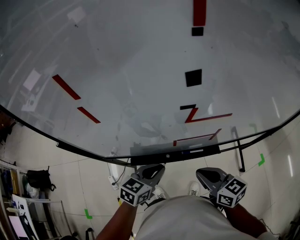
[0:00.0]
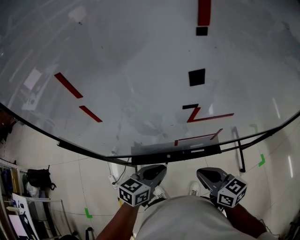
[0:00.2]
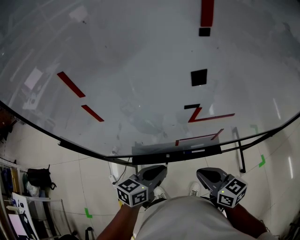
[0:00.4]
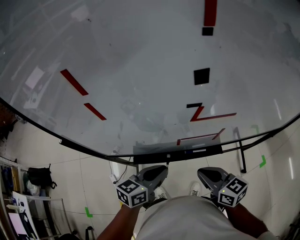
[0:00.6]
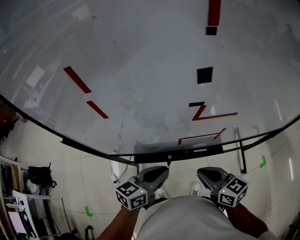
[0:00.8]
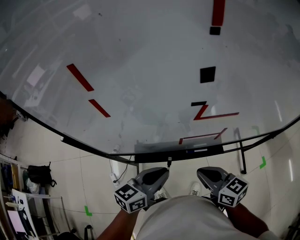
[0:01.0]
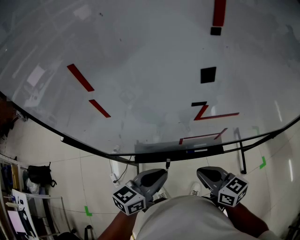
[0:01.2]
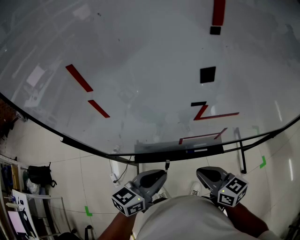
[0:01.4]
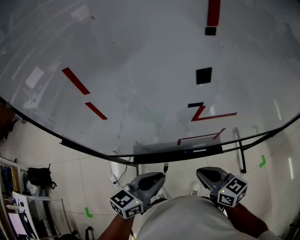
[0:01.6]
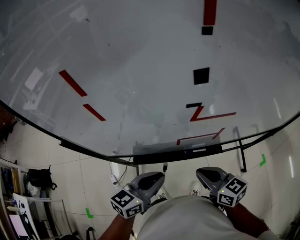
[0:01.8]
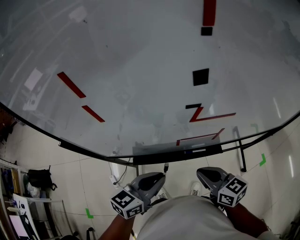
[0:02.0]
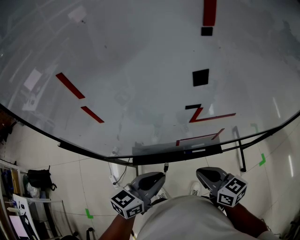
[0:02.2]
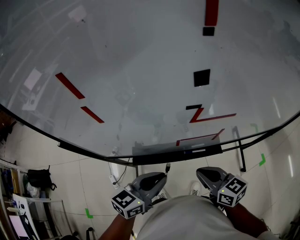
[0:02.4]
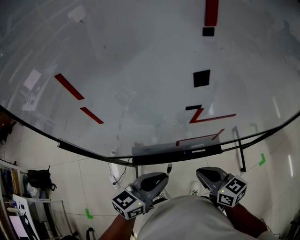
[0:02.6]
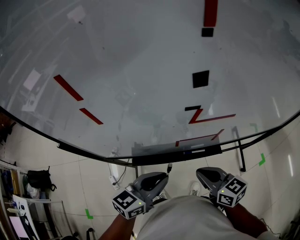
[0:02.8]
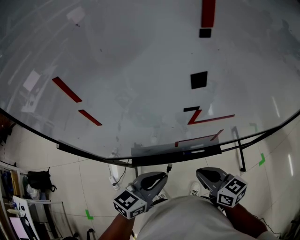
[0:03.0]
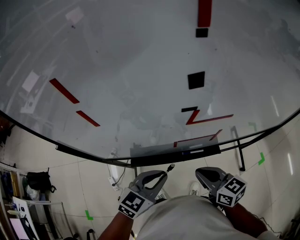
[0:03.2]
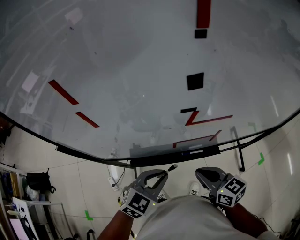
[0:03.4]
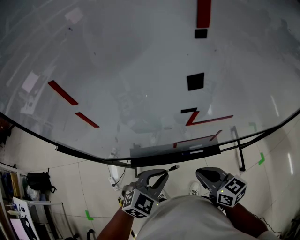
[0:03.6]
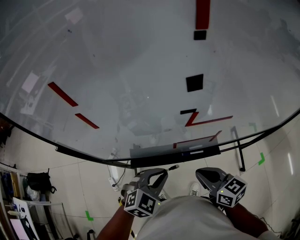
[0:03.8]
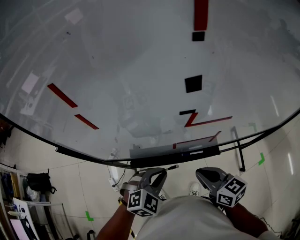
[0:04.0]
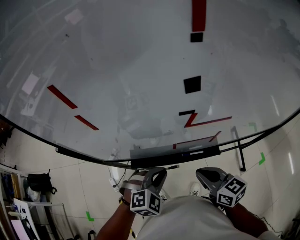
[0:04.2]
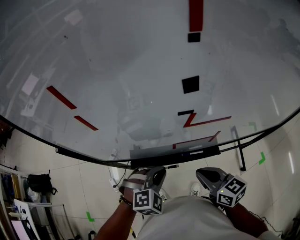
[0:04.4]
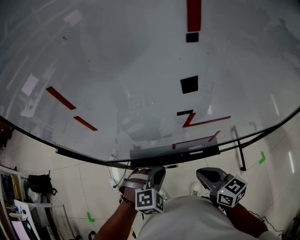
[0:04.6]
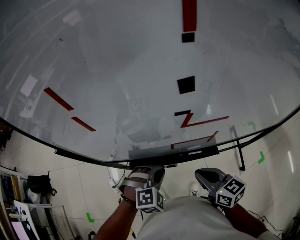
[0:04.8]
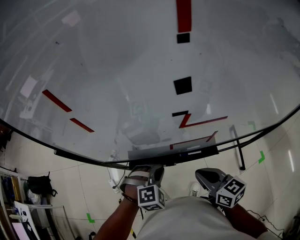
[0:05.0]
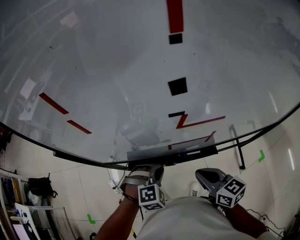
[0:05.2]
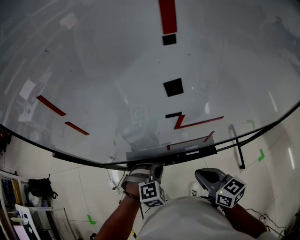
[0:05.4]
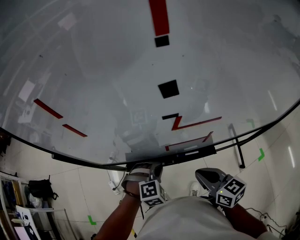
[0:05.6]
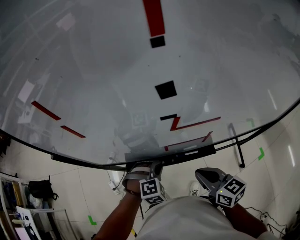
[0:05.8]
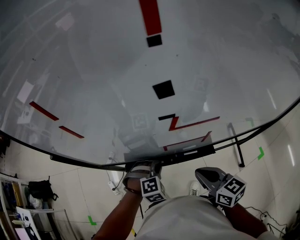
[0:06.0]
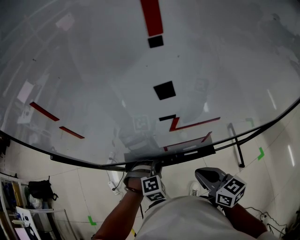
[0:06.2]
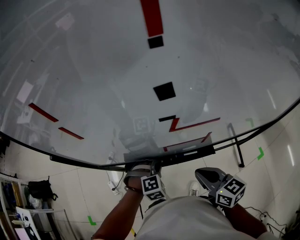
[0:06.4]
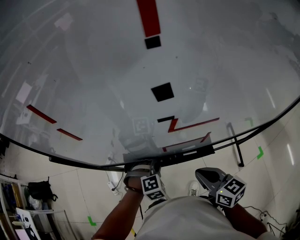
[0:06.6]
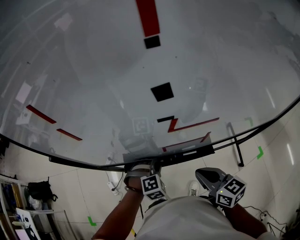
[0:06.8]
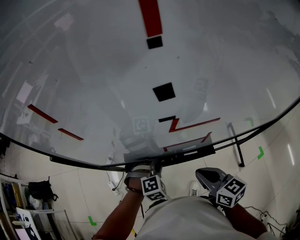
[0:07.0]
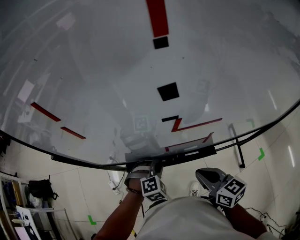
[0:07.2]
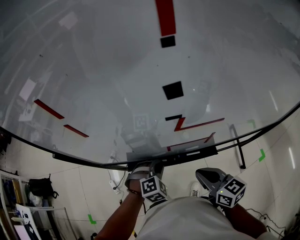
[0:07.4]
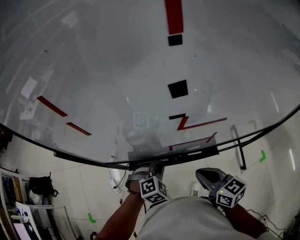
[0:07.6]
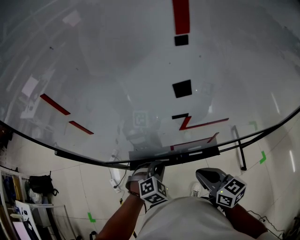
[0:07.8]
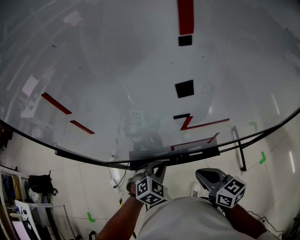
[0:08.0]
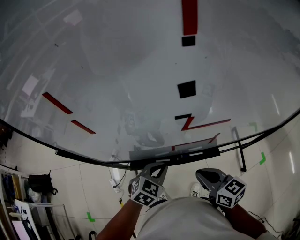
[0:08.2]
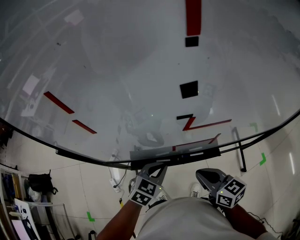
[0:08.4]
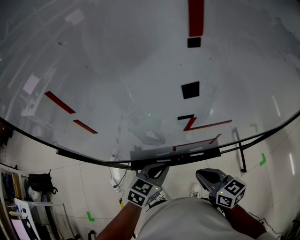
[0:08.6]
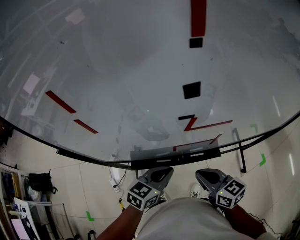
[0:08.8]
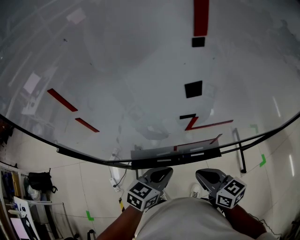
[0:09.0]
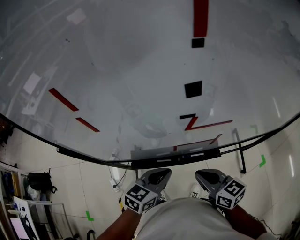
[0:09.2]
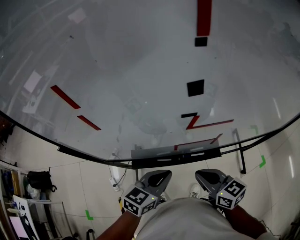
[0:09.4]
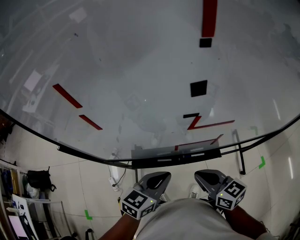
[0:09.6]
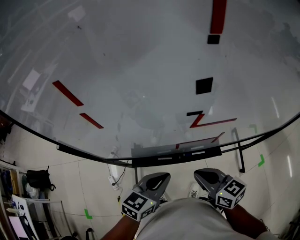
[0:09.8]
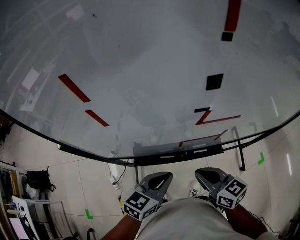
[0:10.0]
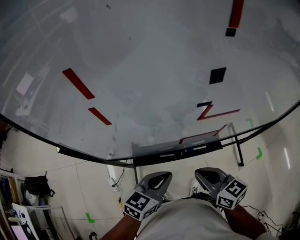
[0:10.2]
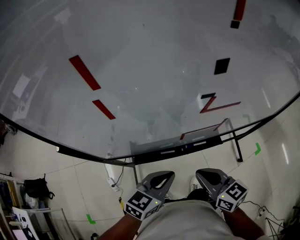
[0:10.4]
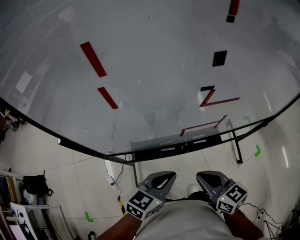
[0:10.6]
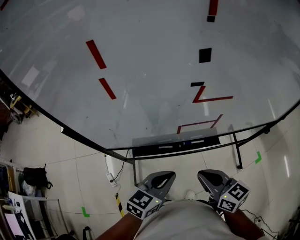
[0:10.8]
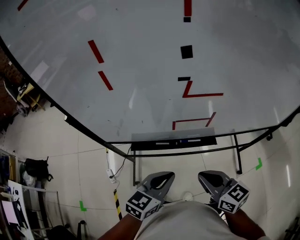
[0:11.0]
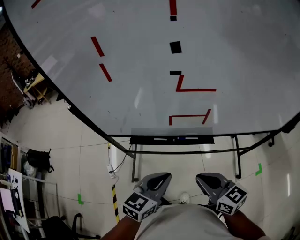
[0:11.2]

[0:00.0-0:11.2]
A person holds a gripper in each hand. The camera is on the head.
0:00.0 to 0:01.6: The left gripper shifts roughly 5 cm upward.
0:01.6 to 0:03.2: The left gripper changes its angle by about 20 degrees.
0:03.2 to 0:04.8: The left gripper shifts about 5 cm downward, and rolls clockwise, seen from behind, by some 50 degrees.
0:04.8 to 0:06.4: The left gripper goes approximately 10 cm downward.
0:06.4 to 0:08.0: The left gripper moves upward, roughly 5 cm, and turns by some 30 degrees.
0:08.0 to 0:09.6: The left gripper travels upward by about 10 cm, and turns by about 50 degrees.
0:09.6 to 0:11.2: The two grippers go approximately 10 cm backward.

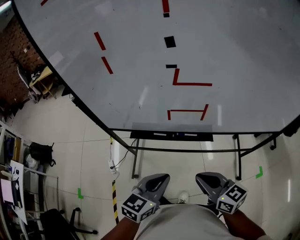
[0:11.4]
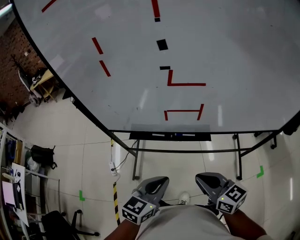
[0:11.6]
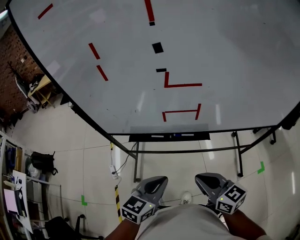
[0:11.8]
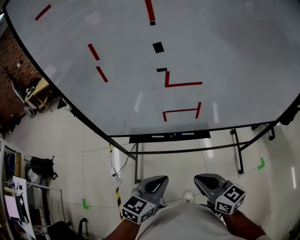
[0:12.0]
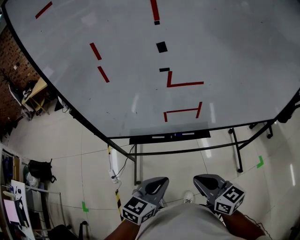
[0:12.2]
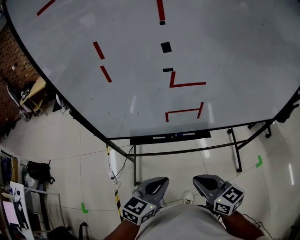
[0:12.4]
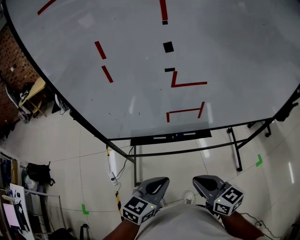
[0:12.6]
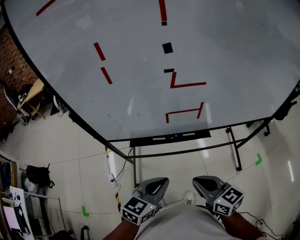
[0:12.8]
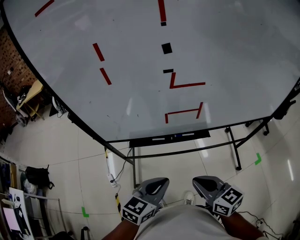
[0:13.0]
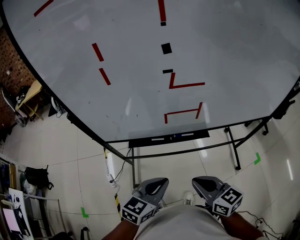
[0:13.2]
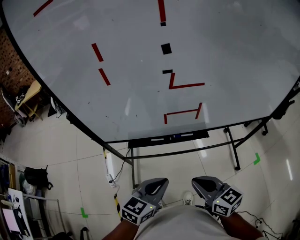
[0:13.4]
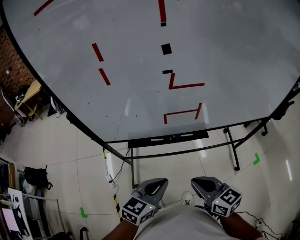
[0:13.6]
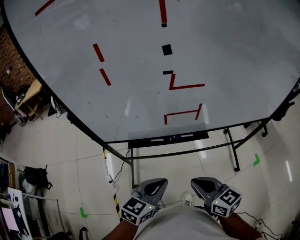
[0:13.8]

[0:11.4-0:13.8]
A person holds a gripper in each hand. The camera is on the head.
0:11.4 to 0:12.6: The right gripper ends up some 5 cm from where it was.
0:12.6 to 0:13.8: Both grippers stay put.

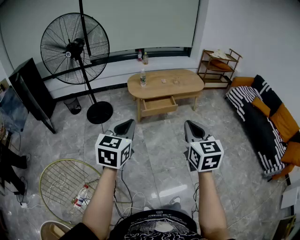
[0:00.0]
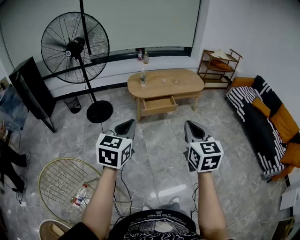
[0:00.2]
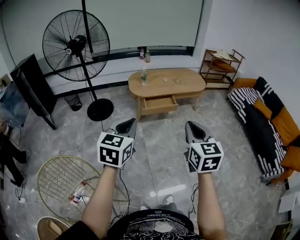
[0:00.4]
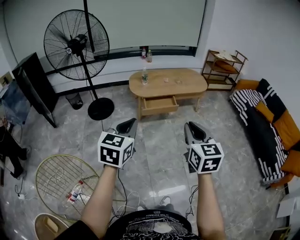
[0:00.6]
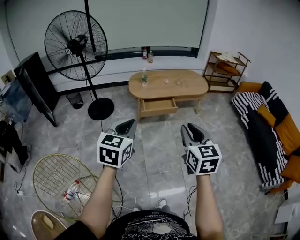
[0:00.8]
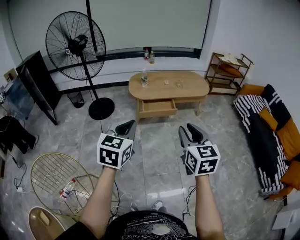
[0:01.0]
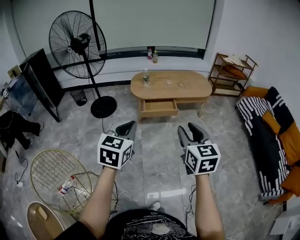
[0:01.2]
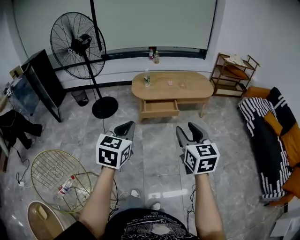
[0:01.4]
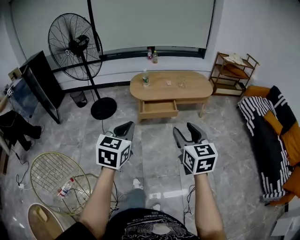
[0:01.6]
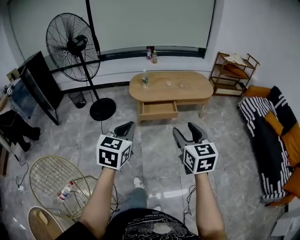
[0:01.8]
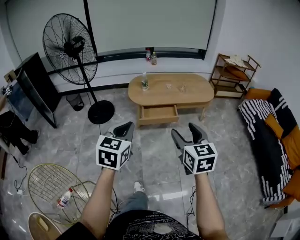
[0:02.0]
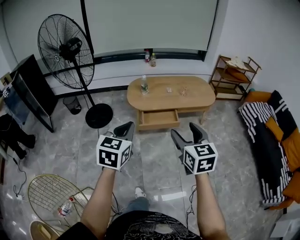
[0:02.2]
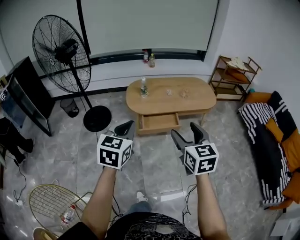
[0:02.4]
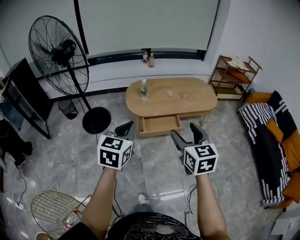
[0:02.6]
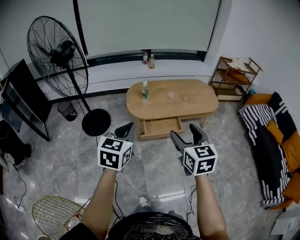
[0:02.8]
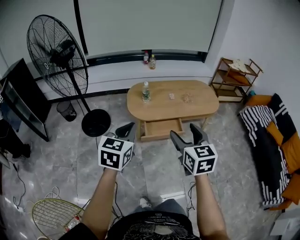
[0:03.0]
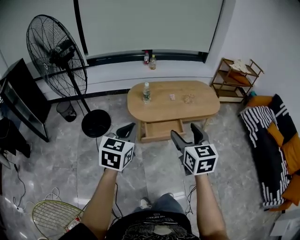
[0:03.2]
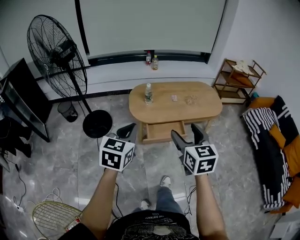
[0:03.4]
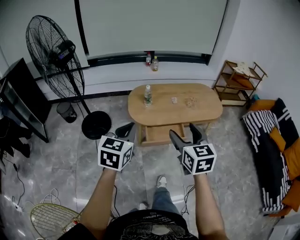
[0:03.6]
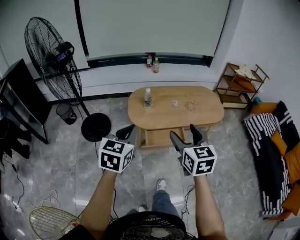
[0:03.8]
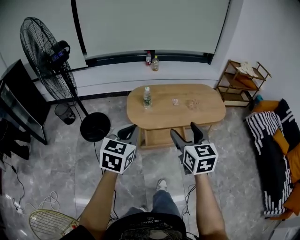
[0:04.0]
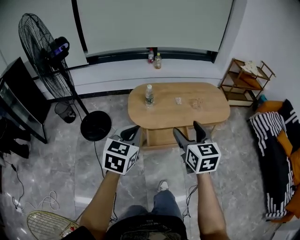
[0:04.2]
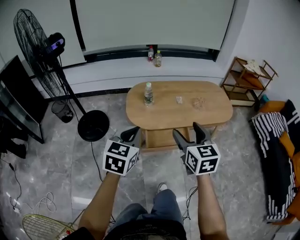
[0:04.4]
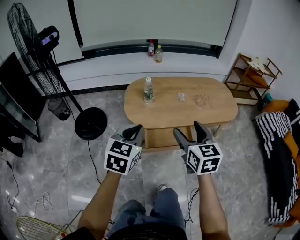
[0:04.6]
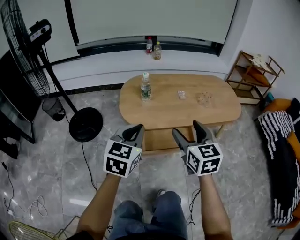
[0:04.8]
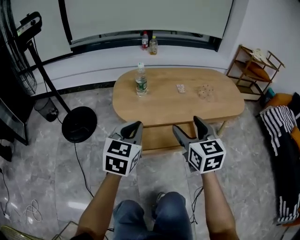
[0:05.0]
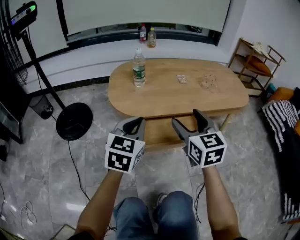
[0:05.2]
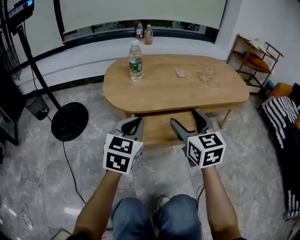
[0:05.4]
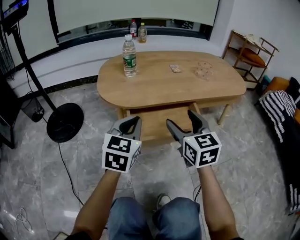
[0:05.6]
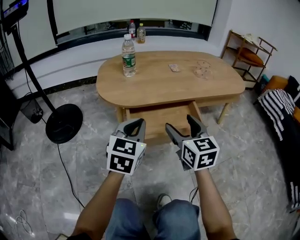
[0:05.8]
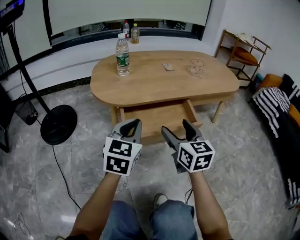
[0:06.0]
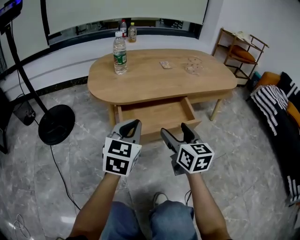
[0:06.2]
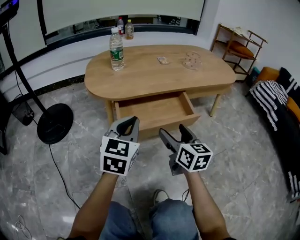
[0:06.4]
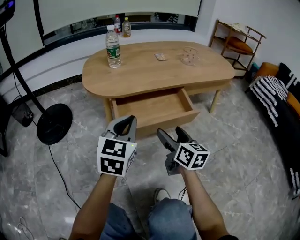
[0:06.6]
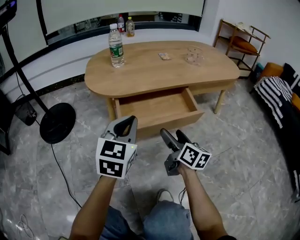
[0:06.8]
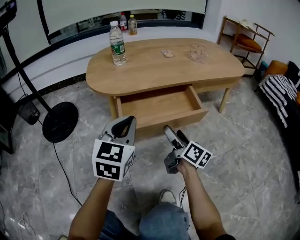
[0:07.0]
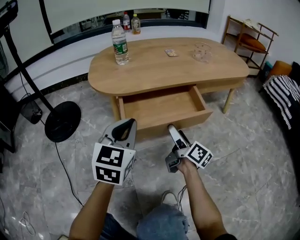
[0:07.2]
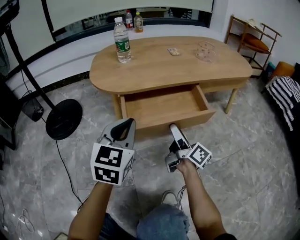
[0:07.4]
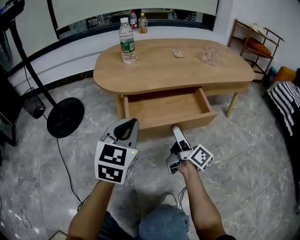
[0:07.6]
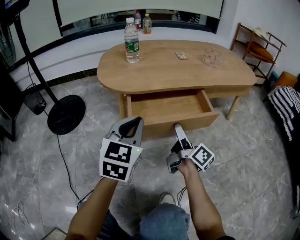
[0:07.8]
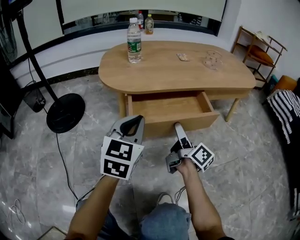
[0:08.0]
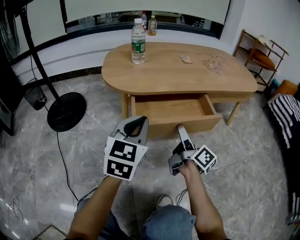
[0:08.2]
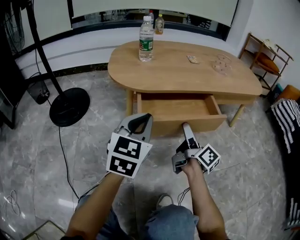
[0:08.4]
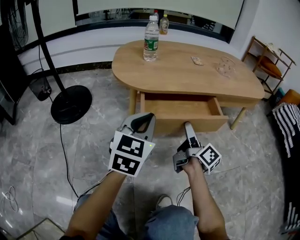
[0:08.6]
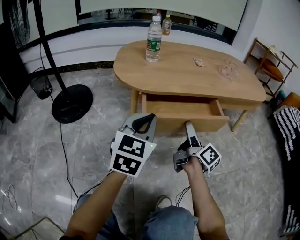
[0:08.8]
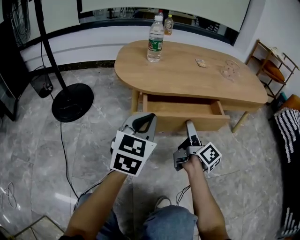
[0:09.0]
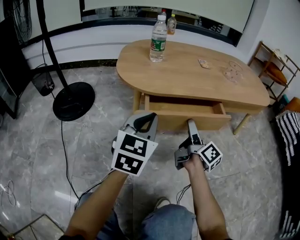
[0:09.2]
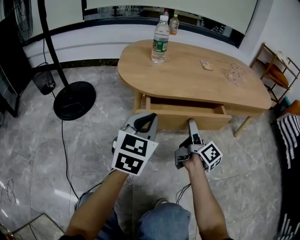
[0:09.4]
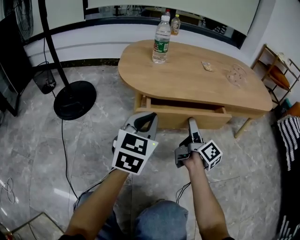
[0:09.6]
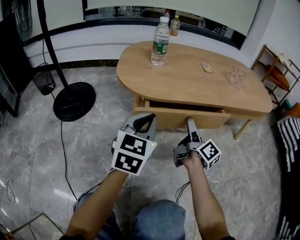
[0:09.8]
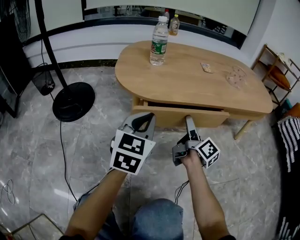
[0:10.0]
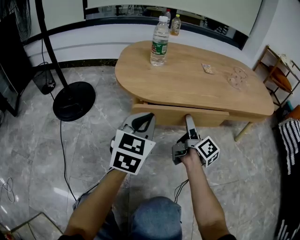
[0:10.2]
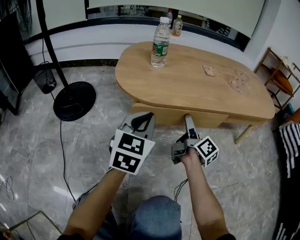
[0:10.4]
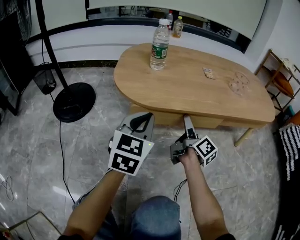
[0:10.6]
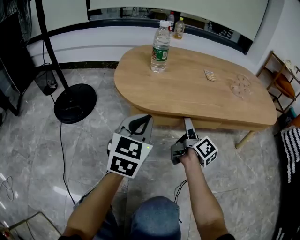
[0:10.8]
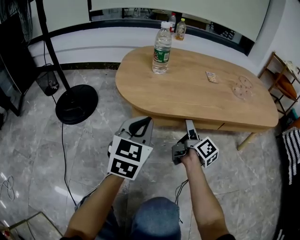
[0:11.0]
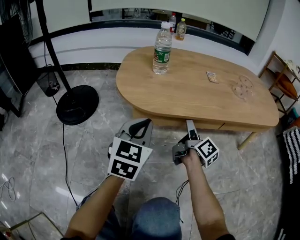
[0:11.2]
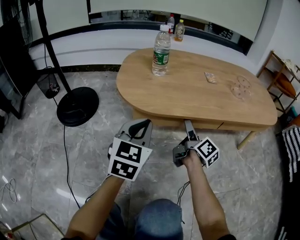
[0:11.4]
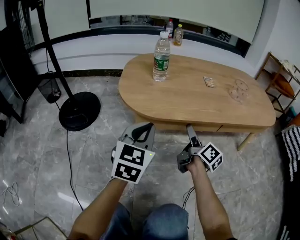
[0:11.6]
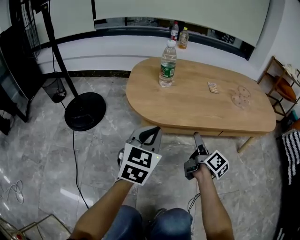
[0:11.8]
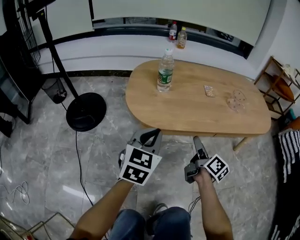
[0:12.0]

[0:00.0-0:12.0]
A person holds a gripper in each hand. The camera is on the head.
0:00.0 to 0:01.6: The right gripper moves forward and to the right, roughly 15 cm, and opens its fingers. Meanwhile the left gripper goes roughly 15 cm to the right and forward.
0:01.6 to 0:03.0: The two grippers go about 30 cm forward.
0:03.0 to 0:04.4: Both grippers move forward and downward, approximately 20 cm.
0:04.4 to 0:06.0: Both grippers travel together downward, roughly 40 cm.
0:06.0 to 0:07.6: The right gripper moves downward, approximately 15 cm, and rolls clockwise, seen from behind, by some 60 degrees.
0:07.6 to 0:09.0: The right gripper moves about 5 cm.
0:09.0 to 0:10.4: The right gripper heads forward, covering approximately 10 cm. Meanwhile the left gripper is displaced forward by roughly 5 cm.
0:10.4 to 0:12.0: The two grippers go approximately 10 cm upward.
